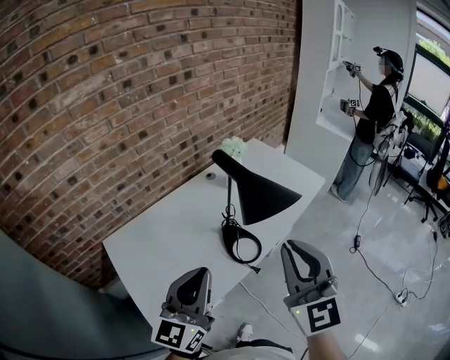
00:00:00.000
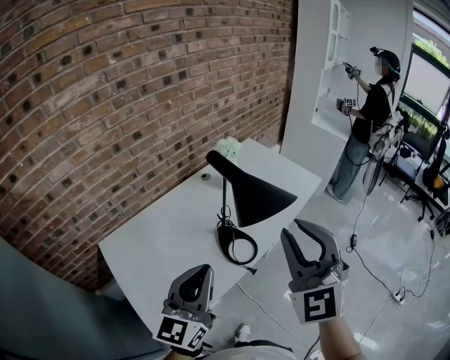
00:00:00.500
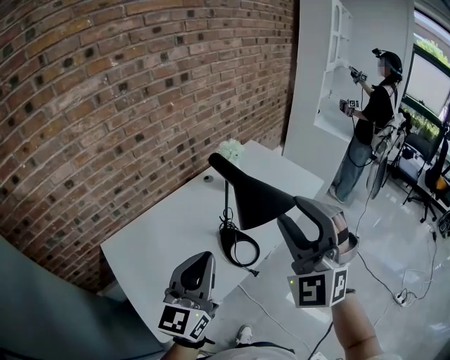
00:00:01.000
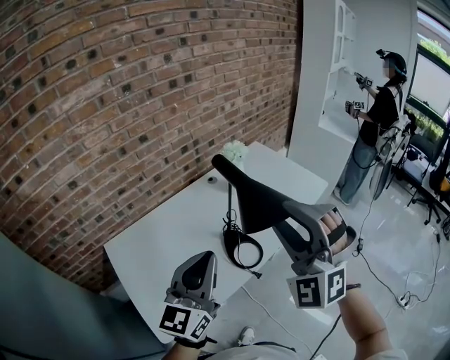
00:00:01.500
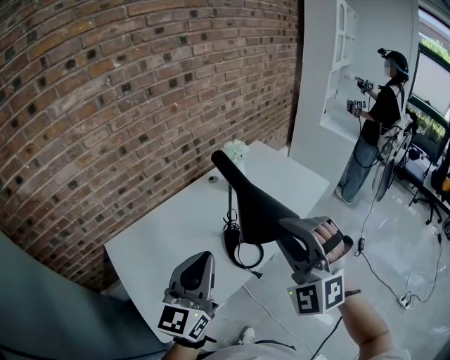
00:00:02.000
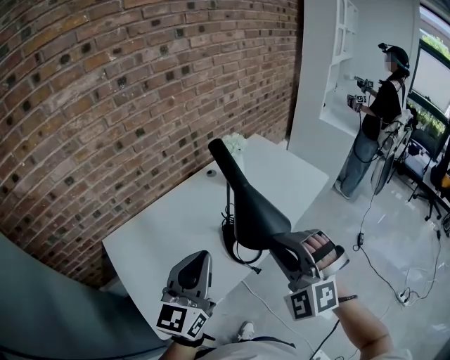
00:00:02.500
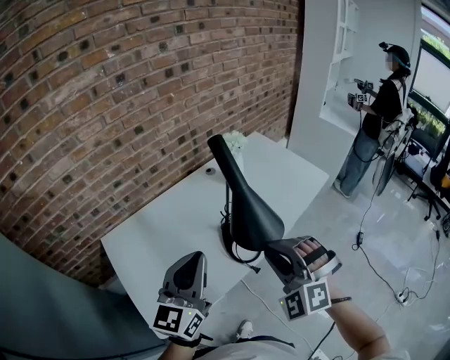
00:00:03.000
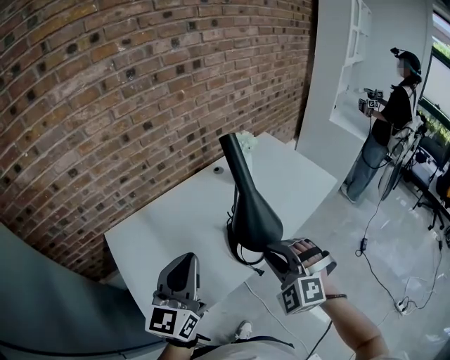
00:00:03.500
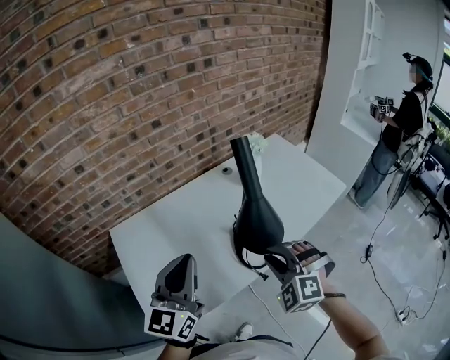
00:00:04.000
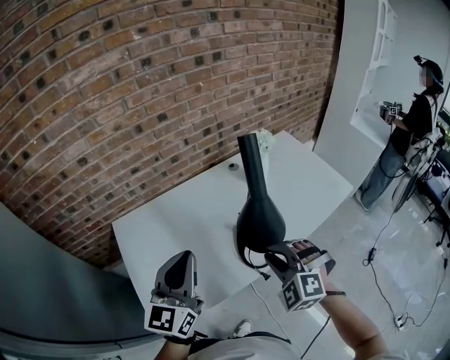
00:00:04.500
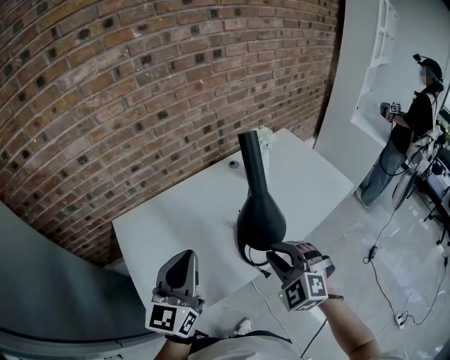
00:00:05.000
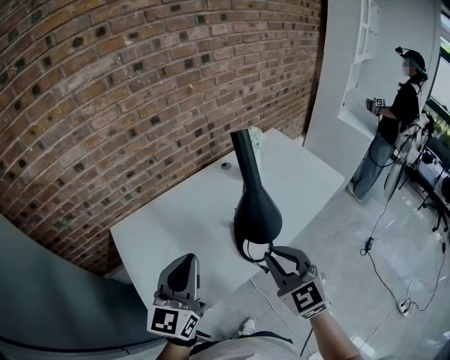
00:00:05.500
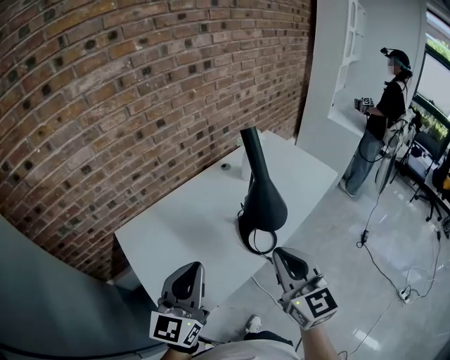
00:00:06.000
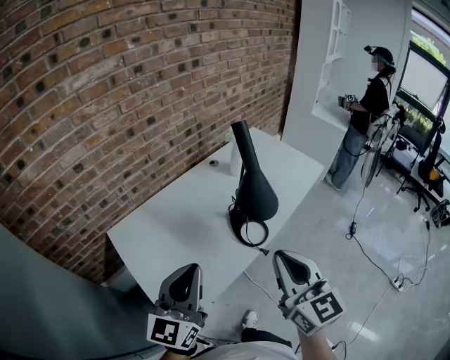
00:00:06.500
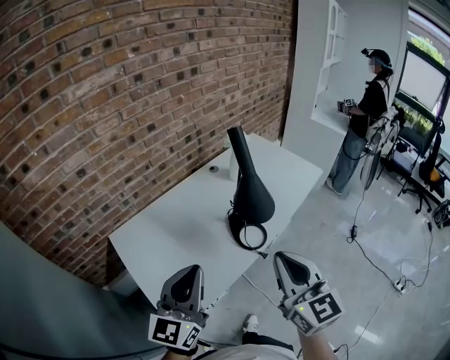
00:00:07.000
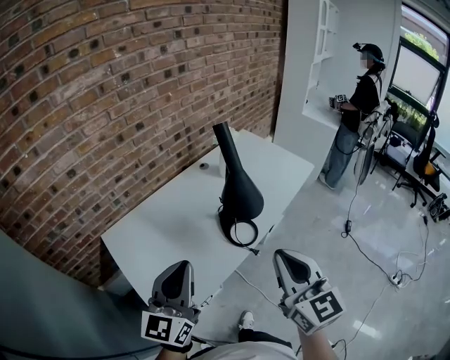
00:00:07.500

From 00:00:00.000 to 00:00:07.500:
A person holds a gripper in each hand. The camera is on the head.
From 00:00:00.000 to 00:00:02.000: The two grippers go about 5 cm forward. The right gripper rotates around the line of its fingers by about 60 degrees, counterclockwise from behind, and opens, then closes again.
From 00:00:02.000 to 00:00:04.000: The left gripper goes roughly 5 cm to the left, while the right gripper goes about 20 cm downward, and changes its angle by some 30 degrees.
From 00:00:04.000 to 00:00:05.500: The right gripper moves upward, approximately 5 cm, and rolls clockwise, seen from behind, by approximately 40 degrees.
From 00:00:05.500 to 00:00:07.500: The right gripper moves backward and upward, approximately 15 cm, and turns by approximately 30 degrees, while the left gripper travels backward by approximately 10 cm.

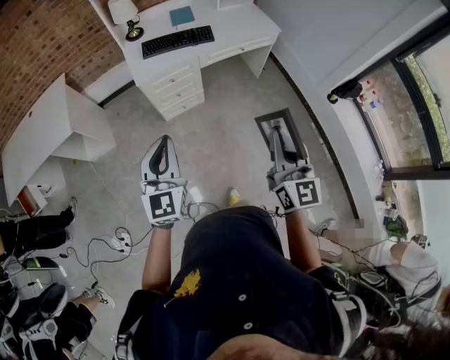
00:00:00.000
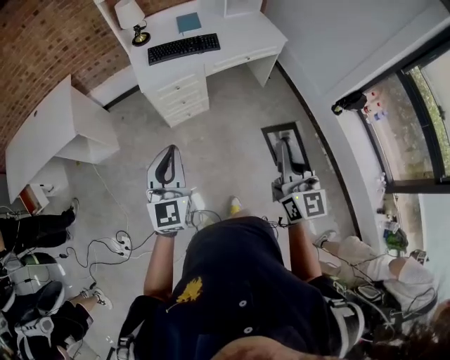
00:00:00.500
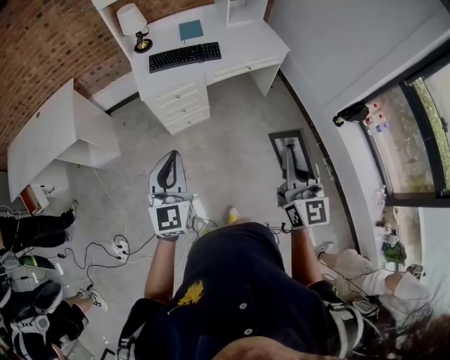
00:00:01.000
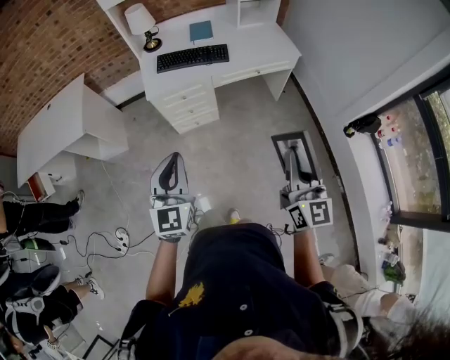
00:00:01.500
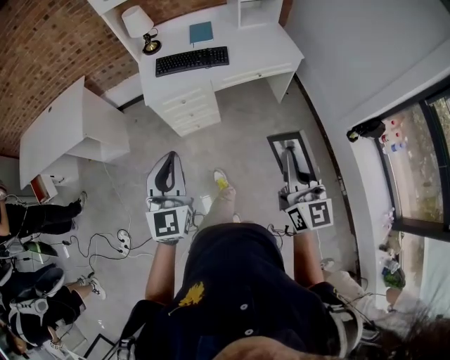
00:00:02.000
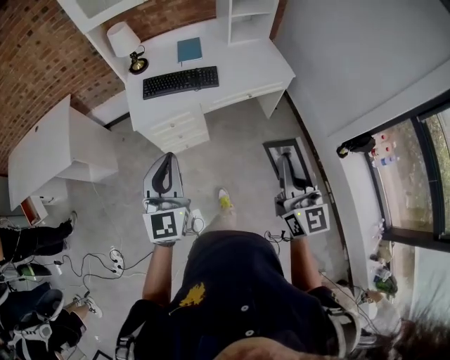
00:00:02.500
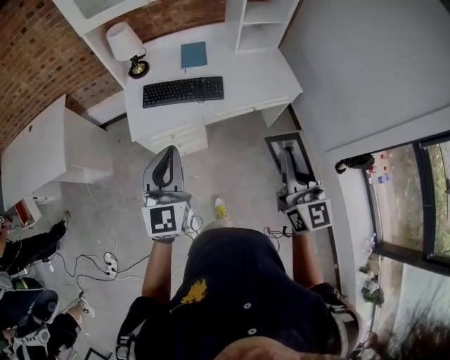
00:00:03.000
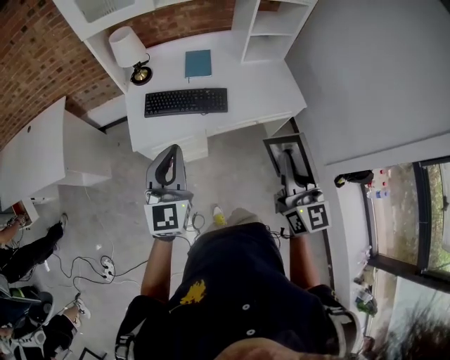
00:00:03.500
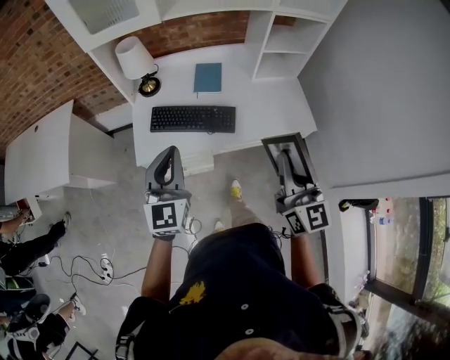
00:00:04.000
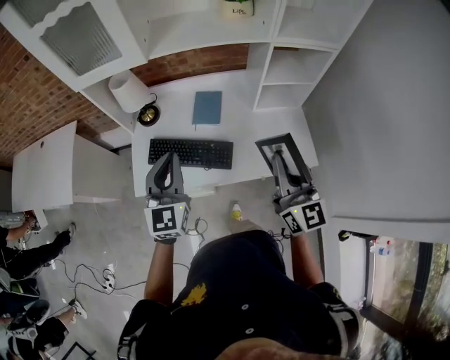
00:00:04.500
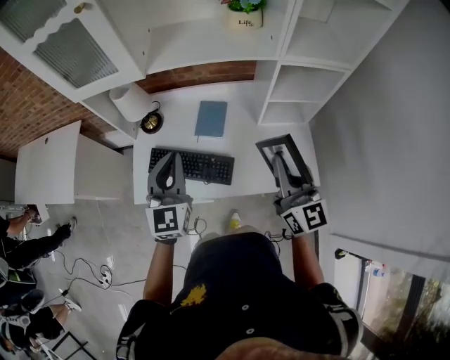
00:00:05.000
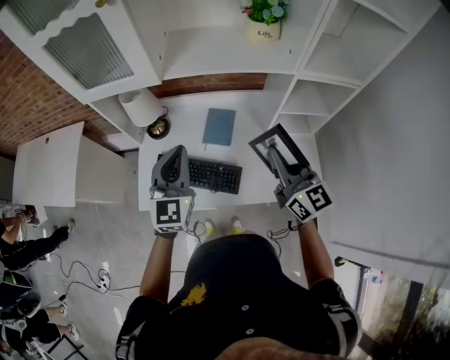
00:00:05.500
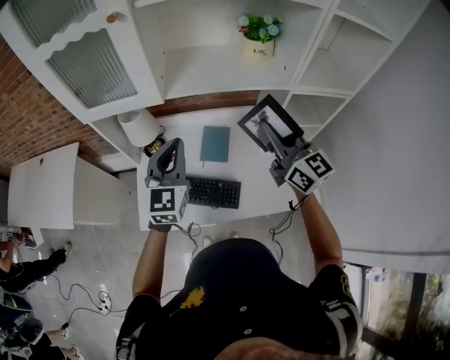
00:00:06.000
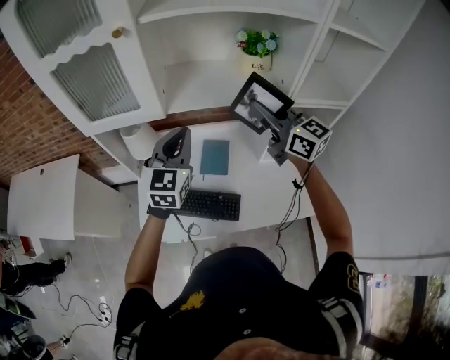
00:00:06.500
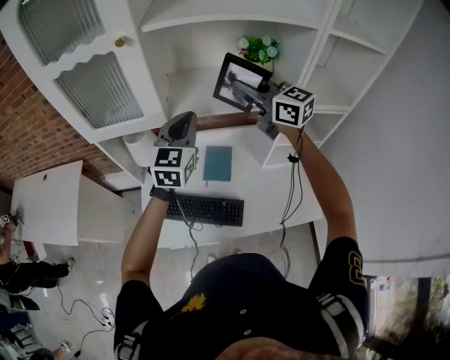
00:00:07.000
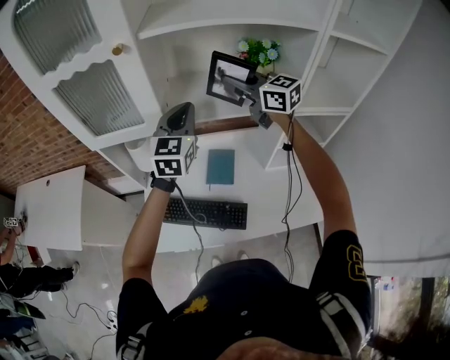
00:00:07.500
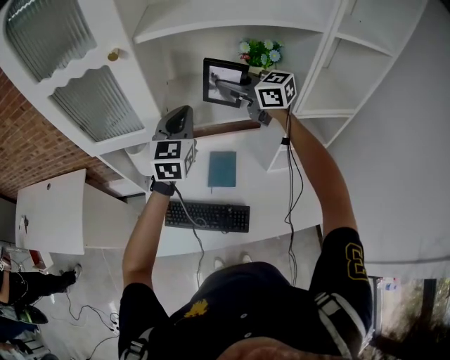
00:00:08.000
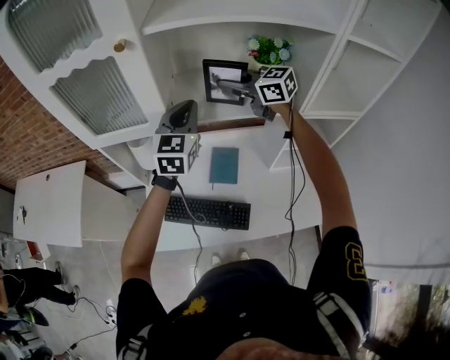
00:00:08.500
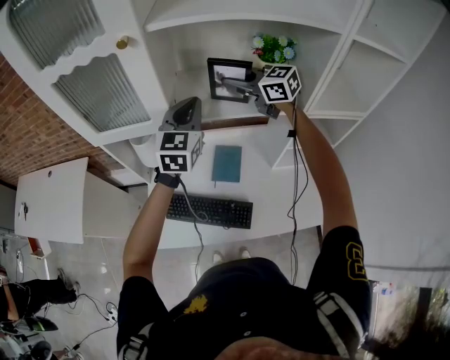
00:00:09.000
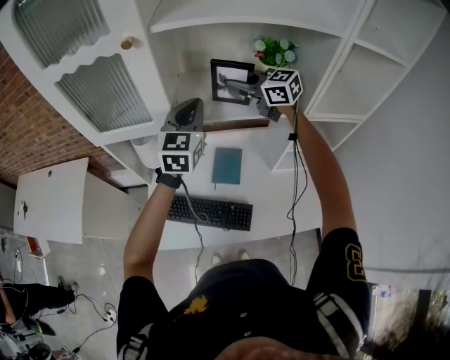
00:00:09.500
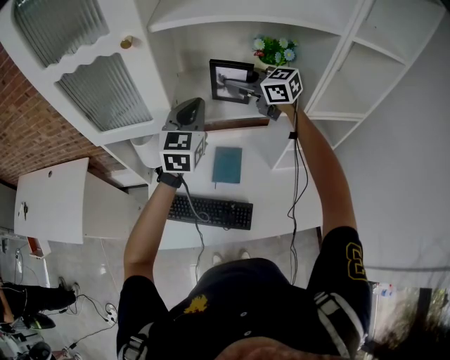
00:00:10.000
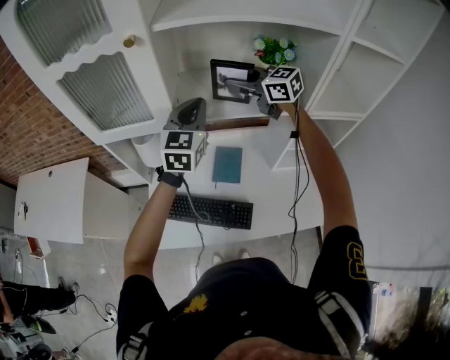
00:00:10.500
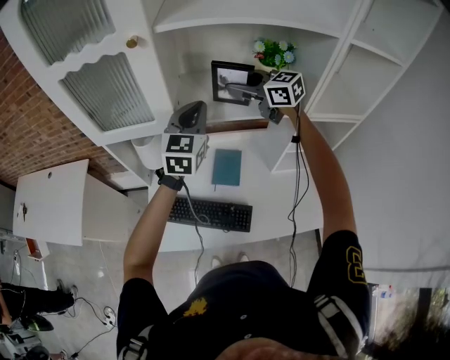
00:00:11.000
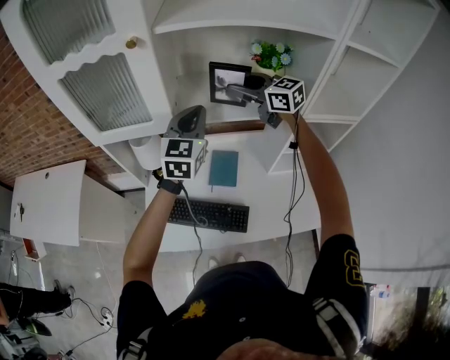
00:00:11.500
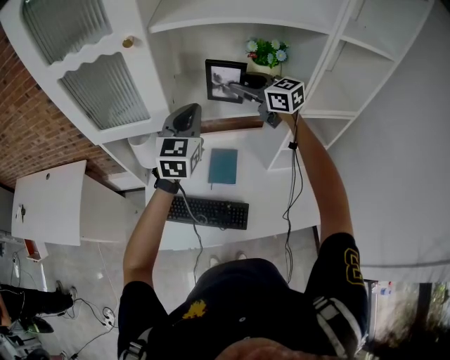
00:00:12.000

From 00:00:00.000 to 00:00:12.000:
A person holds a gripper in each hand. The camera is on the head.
From 00:00:00.000 to 00:00:02.000: Both grippers move to the right and forward, about 15 cm.
From 00:00:02.000 to 00:00:04.000: Both grippers are carried forward, about 40 cm.
From 00:00:04.000 to 00:00:06.000: Both grippers move forward, about 35 cm. The right gripper changes its angle by about 20 degrees.
From 00:00:06.000 to 00:00:08.000: The left gripper travels forward and upward by approximately 15 cm; the right gripper travels forward by about 25 cm, and swivels about 30 degrees.
From 00:00:08.000 to 00:00:10.000: The grippers move only a little.
From 00:00:10.000 to 00:00:12.000: The right gripper opens.

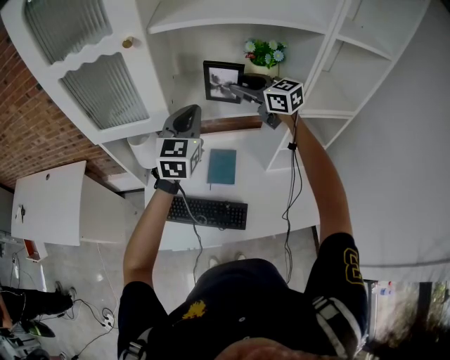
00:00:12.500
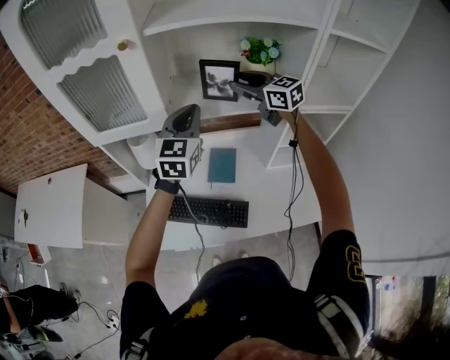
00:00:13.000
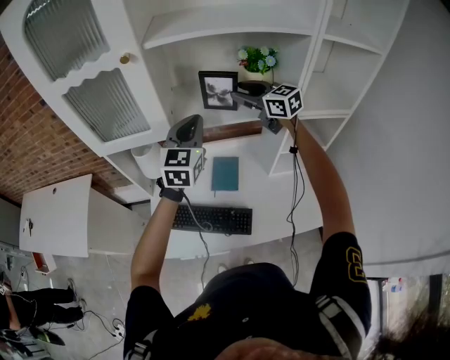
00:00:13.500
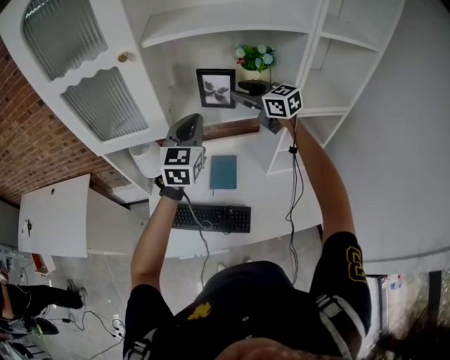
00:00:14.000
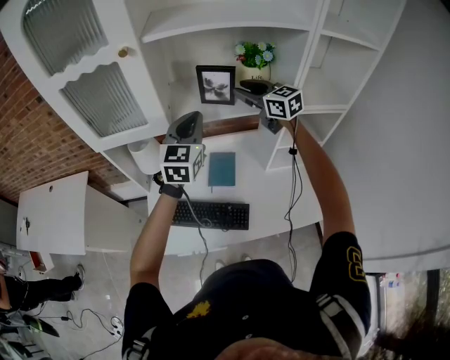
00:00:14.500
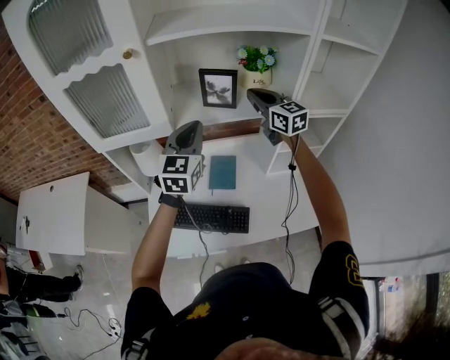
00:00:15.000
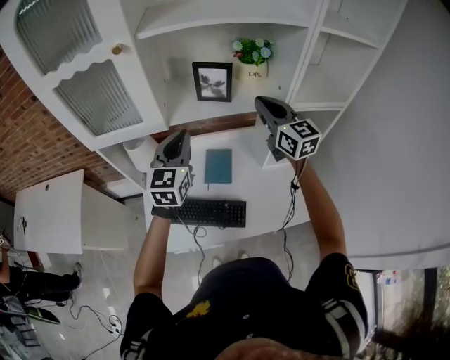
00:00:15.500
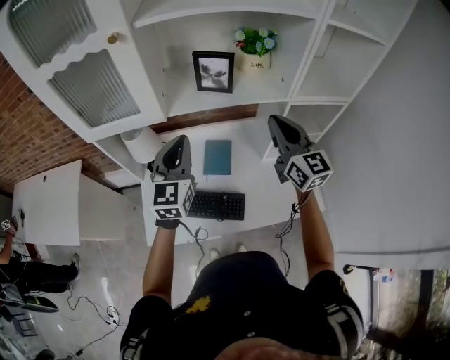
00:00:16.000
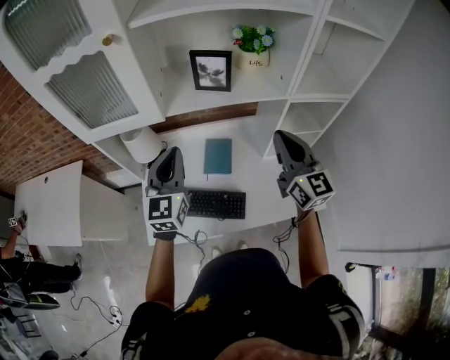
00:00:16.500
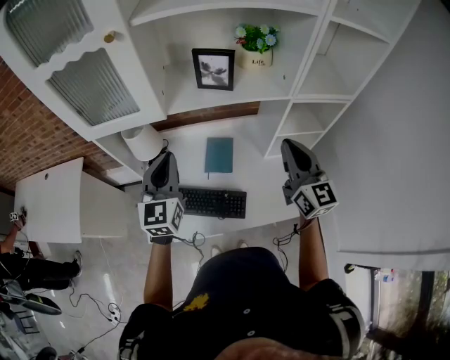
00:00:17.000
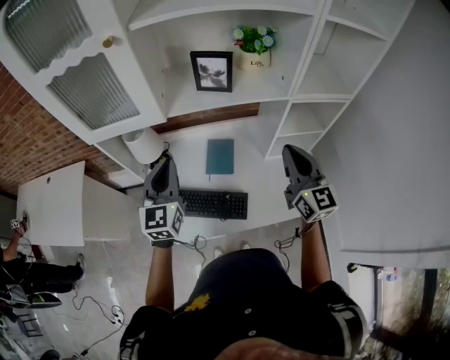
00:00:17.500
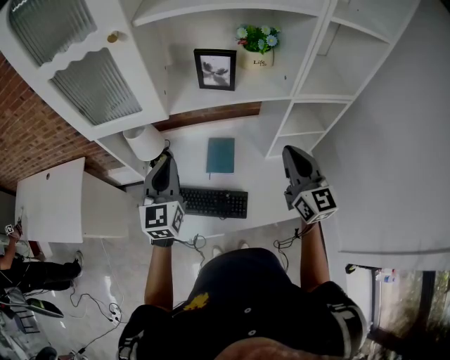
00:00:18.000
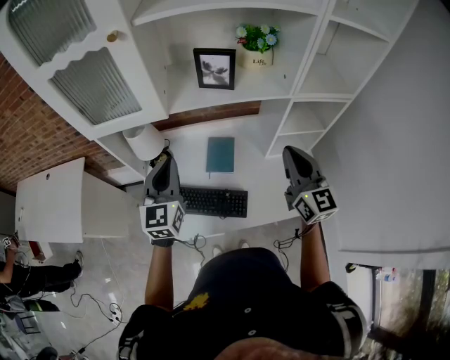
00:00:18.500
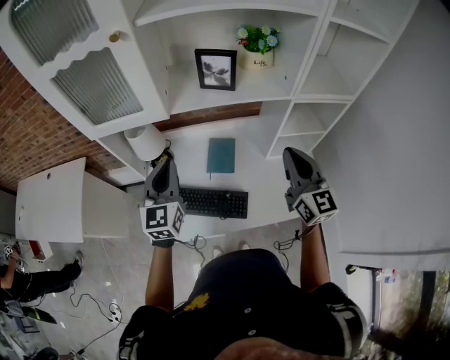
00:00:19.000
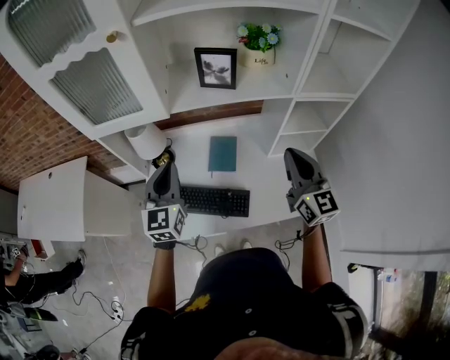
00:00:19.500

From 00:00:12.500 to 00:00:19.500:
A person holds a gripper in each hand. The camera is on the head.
From 00:00:12.500 to 00:00:14.500: The grippers stay close to where they were, moving slightly.
From 00:00:14.500 to 00:00:16.000: The left gripper goes about 5 cm backward, while the right gripper shifts approximately 15 cm backward, swivels approximately 20 degrees, and closes.
From 00:00:16.000 to 00:00:17.500: The left gripper shifts by approximately 5 cm; the right gripper moves backward, some 5 cm.
From 00:00:17.500 to 00:00:19.500: There are only small adjustments of the grippers.
